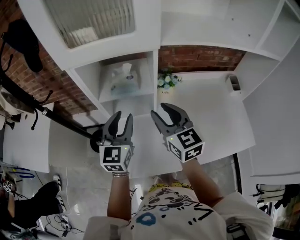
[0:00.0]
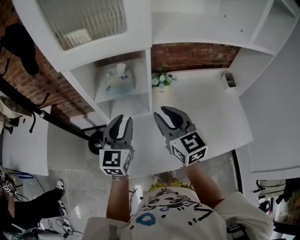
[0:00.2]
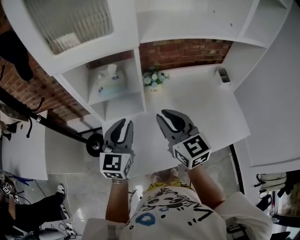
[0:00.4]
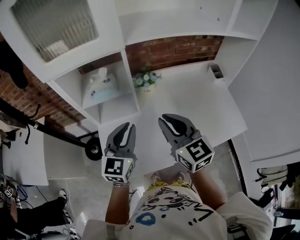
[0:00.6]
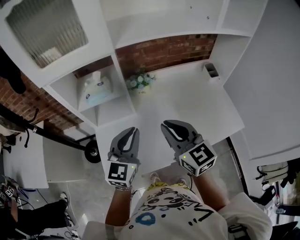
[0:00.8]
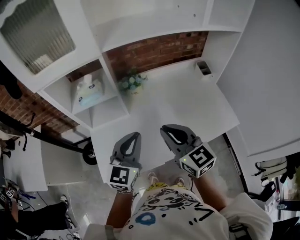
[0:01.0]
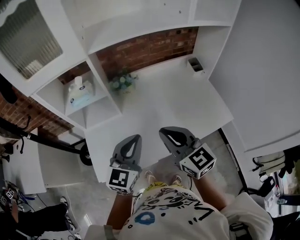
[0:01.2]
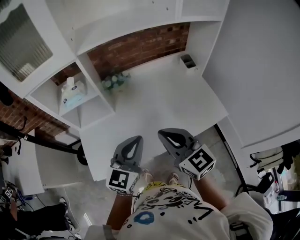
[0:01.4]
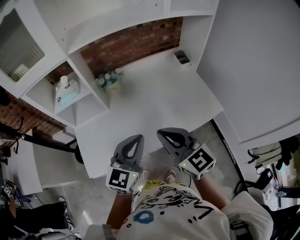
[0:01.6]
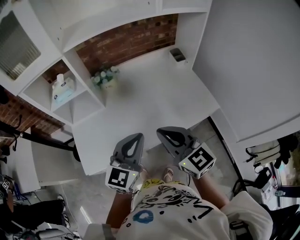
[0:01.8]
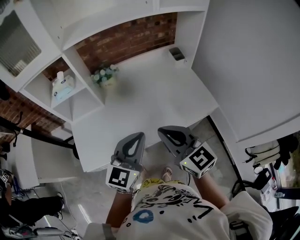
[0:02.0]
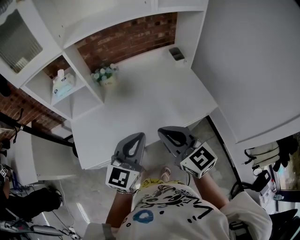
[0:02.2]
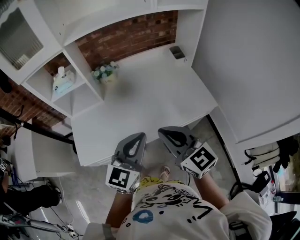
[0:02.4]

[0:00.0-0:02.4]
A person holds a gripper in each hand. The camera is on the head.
0:00.0 to 0:01.2: The grippers both shift to the right and backward by some 25 cm. The right gripper closes, while the left gripper turns by approximately 30 degrees, and closes its fingers.
0:01.2 to 0:02.4: Both grippers travel together to the right and backward, roughly 15 cm.

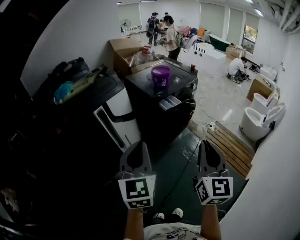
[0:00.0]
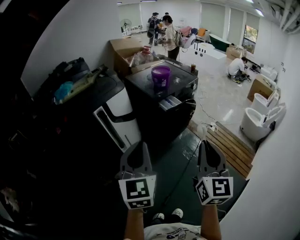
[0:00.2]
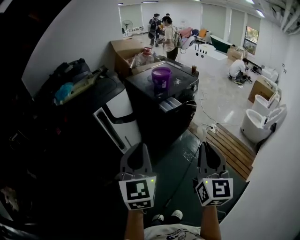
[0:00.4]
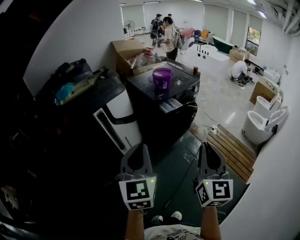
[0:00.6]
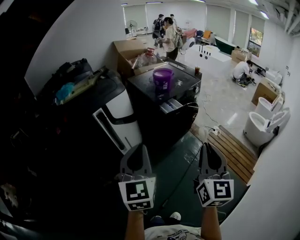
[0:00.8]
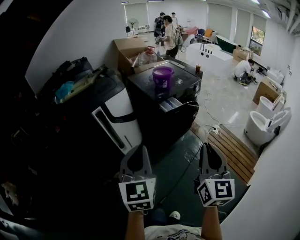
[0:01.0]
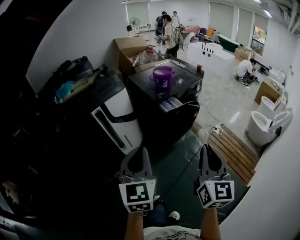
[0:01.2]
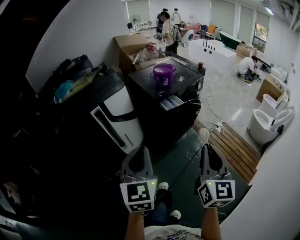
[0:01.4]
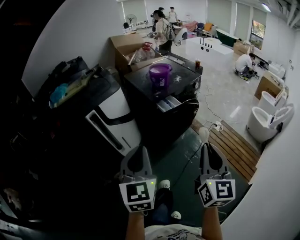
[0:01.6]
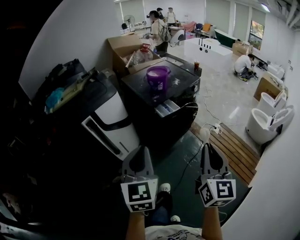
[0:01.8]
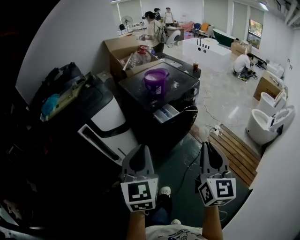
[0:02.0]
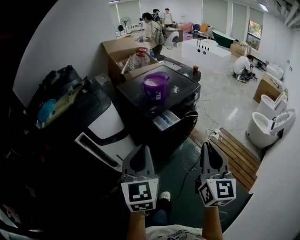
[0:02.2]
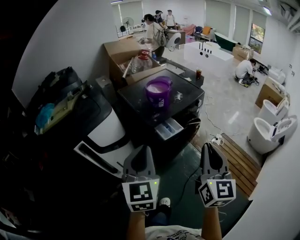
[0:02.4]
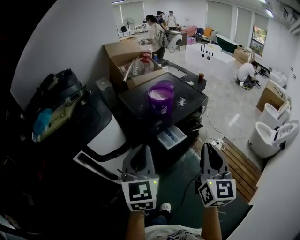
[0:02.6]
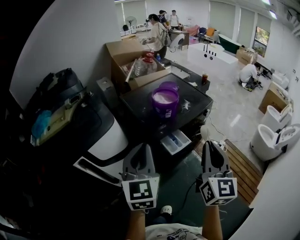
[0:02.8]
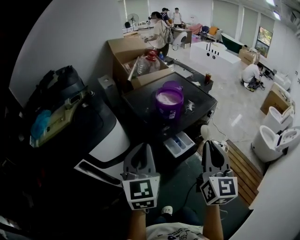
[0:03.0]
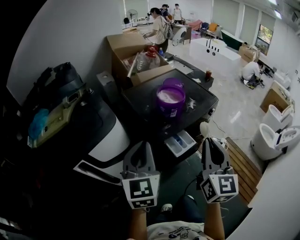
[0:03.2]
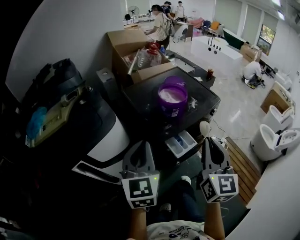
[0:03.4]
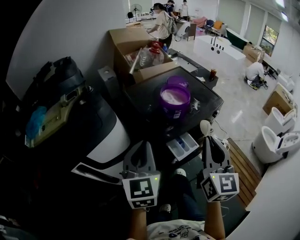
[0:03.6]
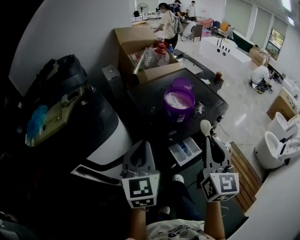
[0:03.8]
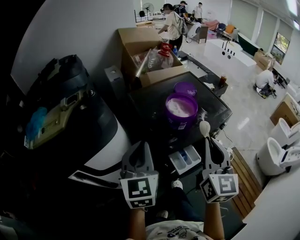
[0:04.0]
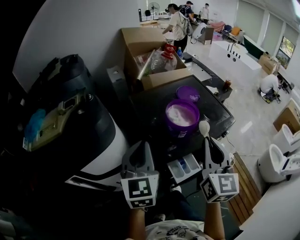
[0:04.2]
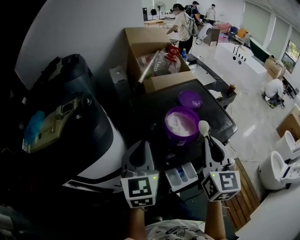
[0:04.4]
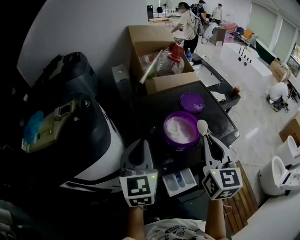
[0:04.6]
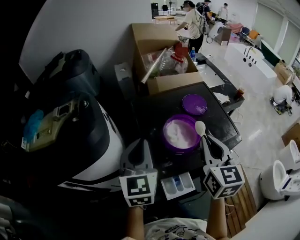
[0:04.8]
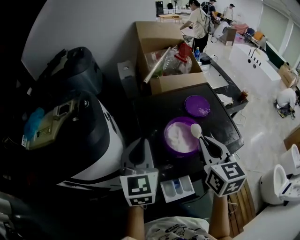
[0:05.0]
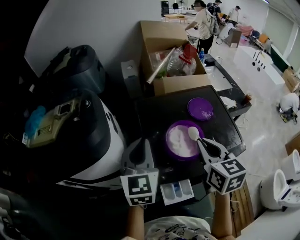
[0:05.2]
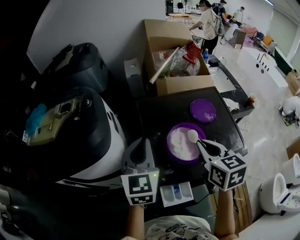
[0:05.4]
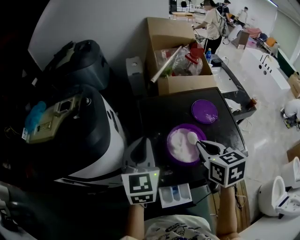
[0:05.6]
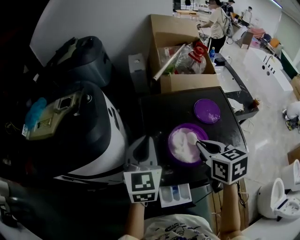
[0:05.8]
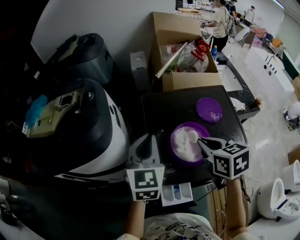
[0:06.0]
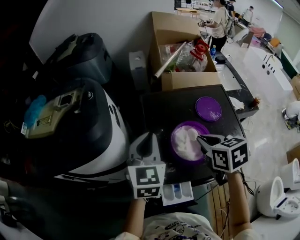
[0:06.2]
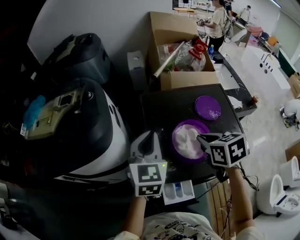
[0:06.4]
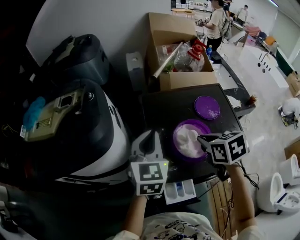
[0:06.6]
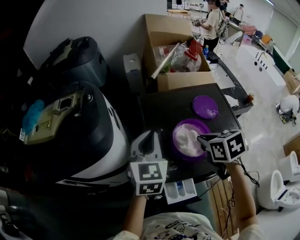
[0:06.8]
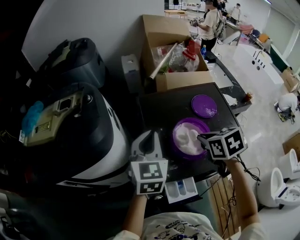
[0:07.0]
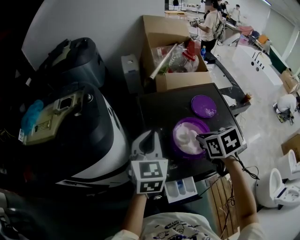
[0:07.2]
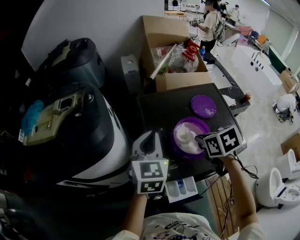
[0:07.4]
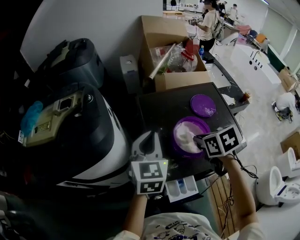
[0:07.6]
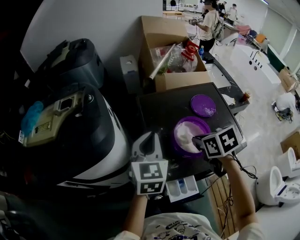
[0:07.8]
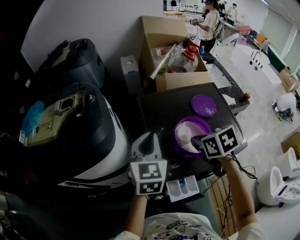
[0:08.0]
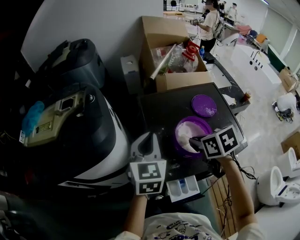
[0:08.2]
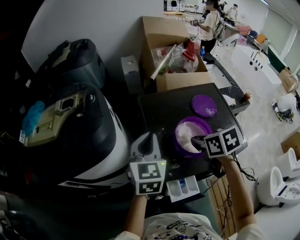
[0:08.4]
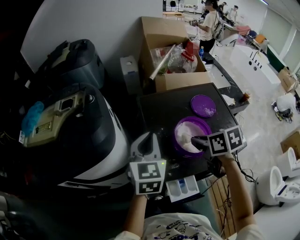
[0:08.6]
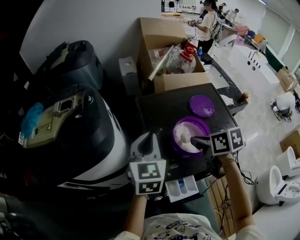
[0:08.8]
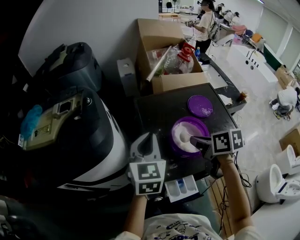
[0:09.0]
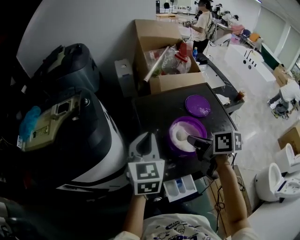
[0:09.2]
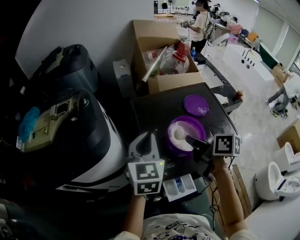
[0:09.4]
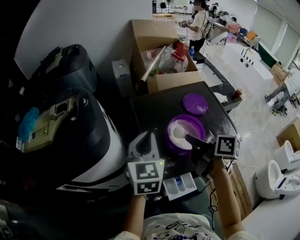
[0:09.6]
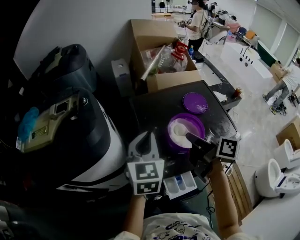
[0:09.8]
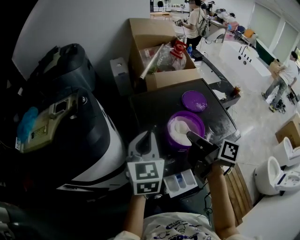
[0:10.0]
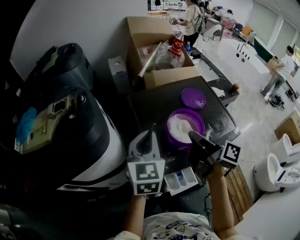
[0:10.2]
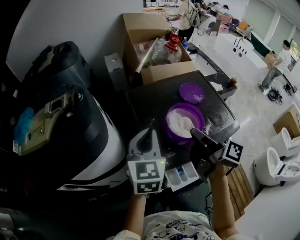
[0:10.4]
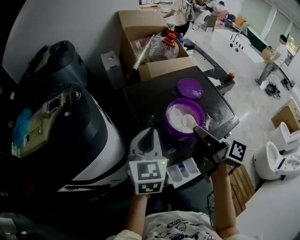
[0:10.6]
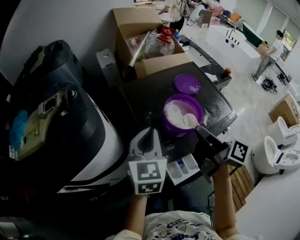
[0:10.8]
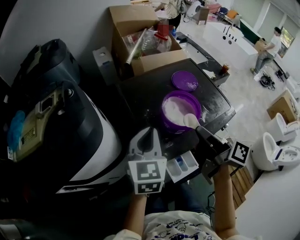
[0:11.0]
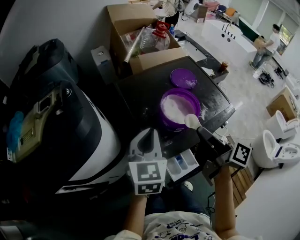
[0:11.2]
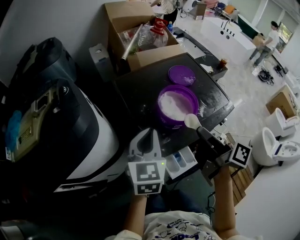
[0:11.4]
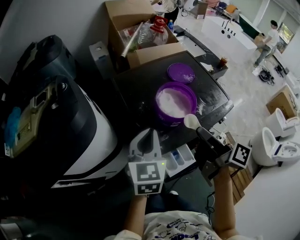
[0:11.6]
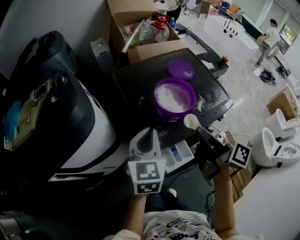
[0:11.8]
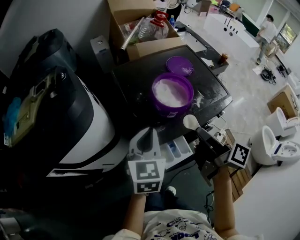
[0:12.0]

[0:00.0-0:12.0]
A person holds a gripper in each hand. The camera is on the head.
0:00.0 to 0:01.6: The two grippers go approximately 10 cm to the right and forward.
0:01.6 to 0:03.0: The grippers both shift forward by about 35 cm.
0:03.0 to 0:04.4: The two grippers go some 20 cm forward.
0:04.4 to 0:06.0: The left gripper shifts by about 10 cm. Meanwhile the right gripper moves about 20 cm, and points its fingers some 40 degrees further downward.
0:06.0 to 0:07.6: The grippers stay close to where they were, moving slightly.
0:07.6 to 0:09.0: The right gripper changes its angle by about 30 degrees.
0:09.0 to 0:10.4: The right gripper changes place by some 5 cm, and points its fingers approximately 40 degrees further upward.
0:10.4 to 0:12.0: The right gripper shifts some 10 cm backward. Meanwhile the left gripper travels backward and downward by some 10 cm.

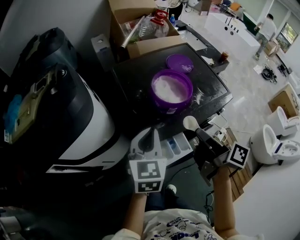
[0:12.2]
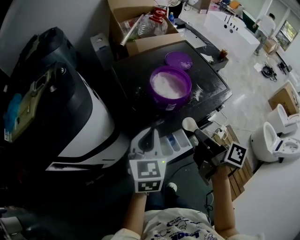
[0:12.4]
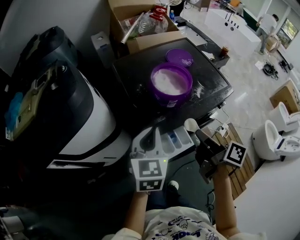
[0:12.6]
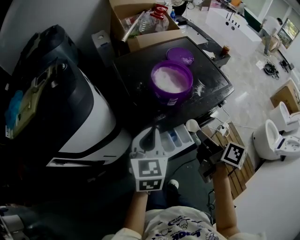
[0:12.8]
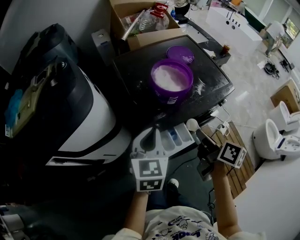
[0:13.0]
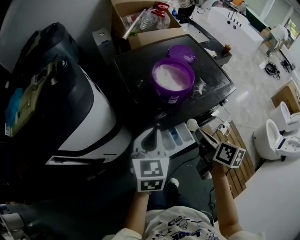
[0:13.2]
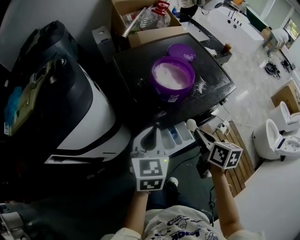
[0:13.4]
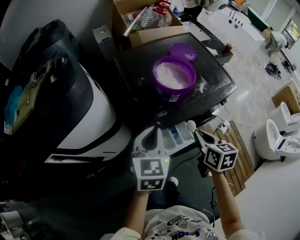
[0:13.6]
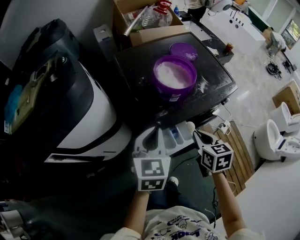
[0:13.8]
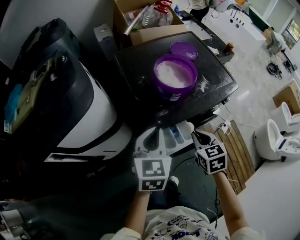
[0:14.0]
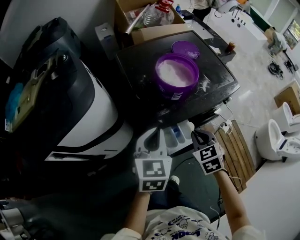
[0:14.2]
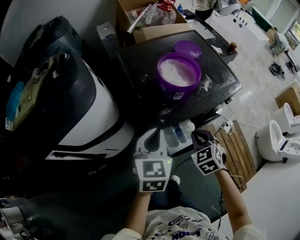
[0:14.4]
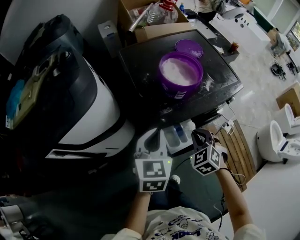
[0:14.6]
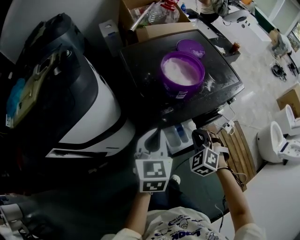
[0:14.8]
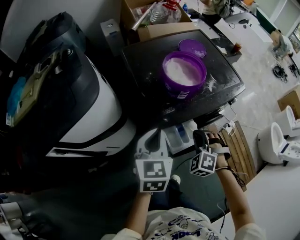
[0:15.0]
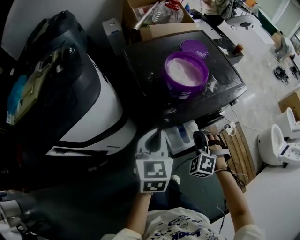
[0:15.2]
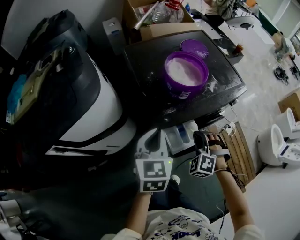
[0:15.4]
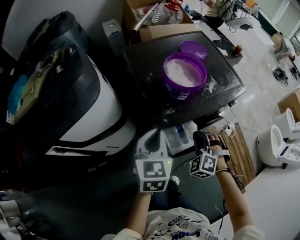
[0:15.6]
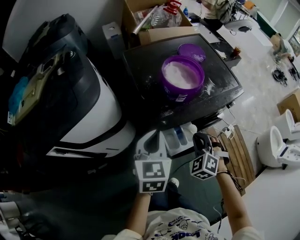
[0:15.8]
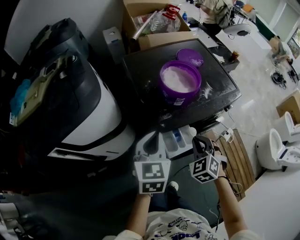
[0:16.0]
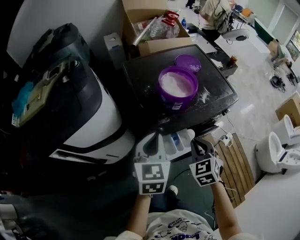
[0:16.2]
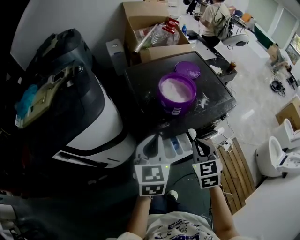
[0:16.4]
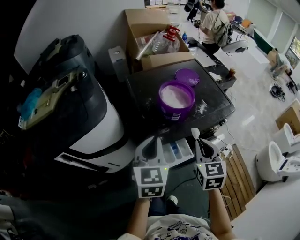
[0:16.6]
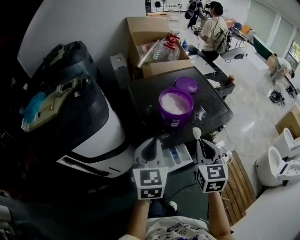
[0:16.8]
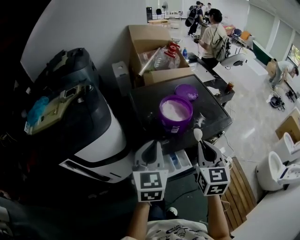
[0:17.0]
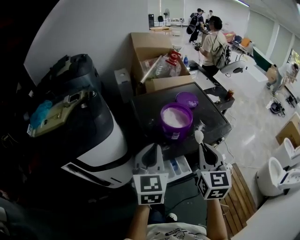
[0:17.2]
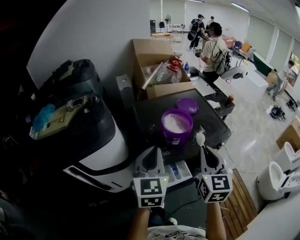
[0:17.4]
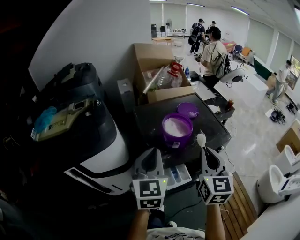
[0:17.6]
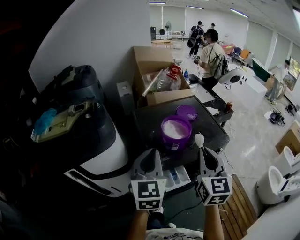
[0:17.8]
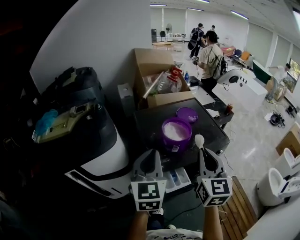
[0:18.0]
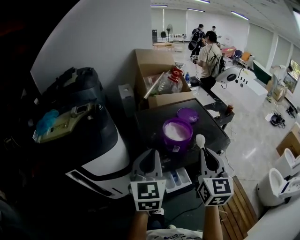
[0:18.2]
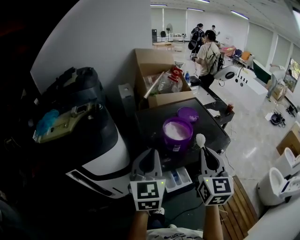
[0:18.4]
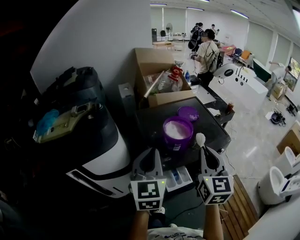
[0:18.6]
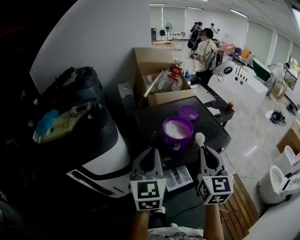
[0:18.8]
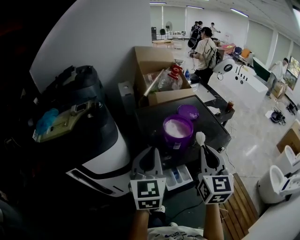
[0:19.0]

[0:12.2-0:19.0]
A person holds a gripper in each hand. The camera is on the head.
0:12.2 to 0:13.6: The right gripper travels downward by some 10 cm, and twists roughly 50 degrees counterclockwise, seen from behind.
0:13.6 to 0:15.0: The right gripper shifts approximately 5 cm downward, and twists approximately 80 degrees counterclockwise, seen from behind.
0:15.0 to 0:16.2: The right gripper goes approximately 5 cm upward, and changes its angle by some 40 degrees.
0:16.2 to 0:17.6: The right gripper is displaced upward by some 25 cm, and tilts its fingers about 30 degrees upward; the left gripper shifts roughly 15 cm upward.
0:17.6 to 0:19.0: The grippers move only a little.

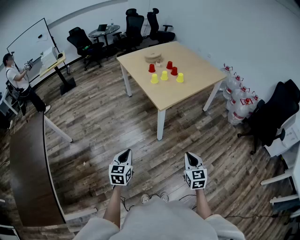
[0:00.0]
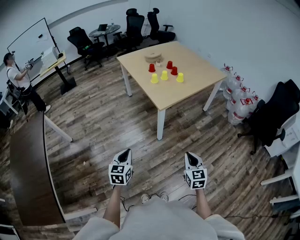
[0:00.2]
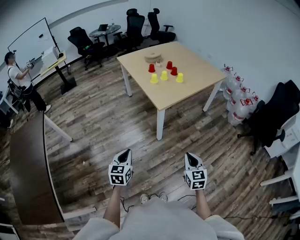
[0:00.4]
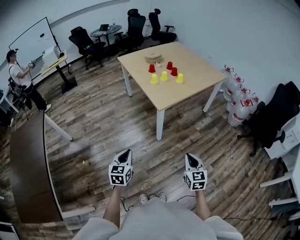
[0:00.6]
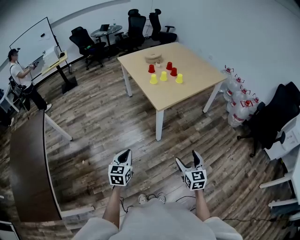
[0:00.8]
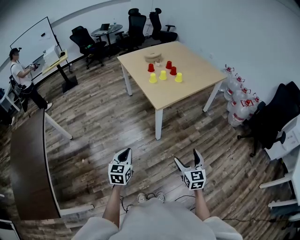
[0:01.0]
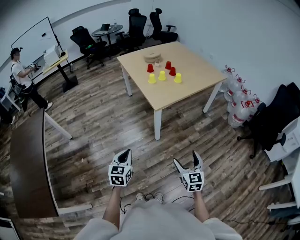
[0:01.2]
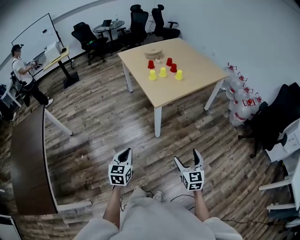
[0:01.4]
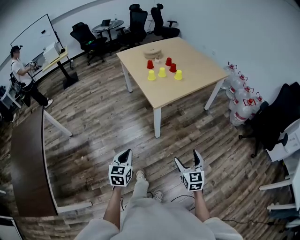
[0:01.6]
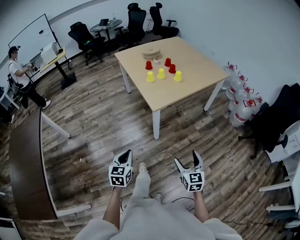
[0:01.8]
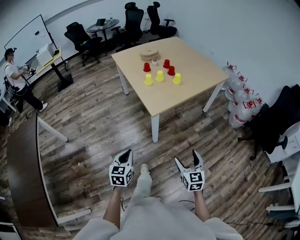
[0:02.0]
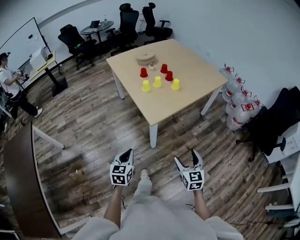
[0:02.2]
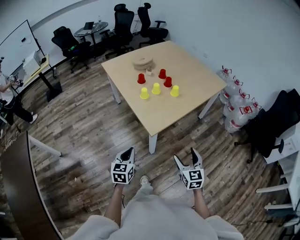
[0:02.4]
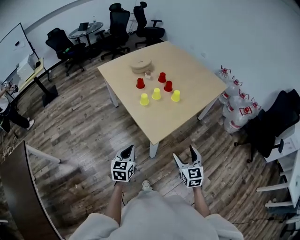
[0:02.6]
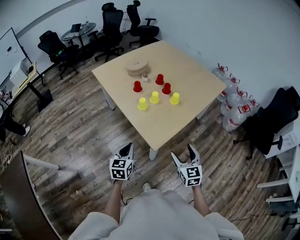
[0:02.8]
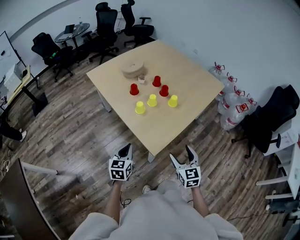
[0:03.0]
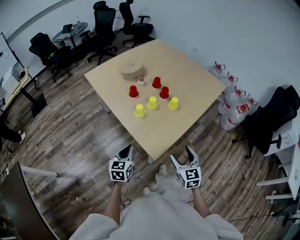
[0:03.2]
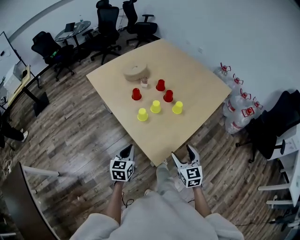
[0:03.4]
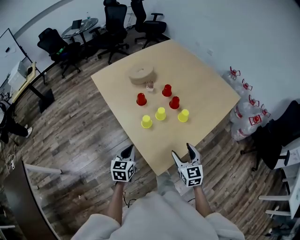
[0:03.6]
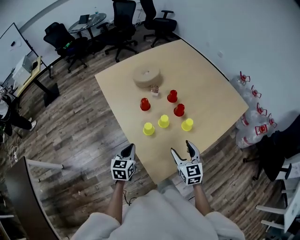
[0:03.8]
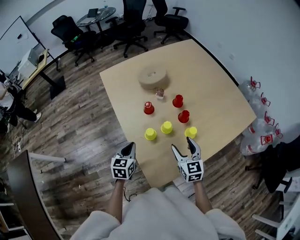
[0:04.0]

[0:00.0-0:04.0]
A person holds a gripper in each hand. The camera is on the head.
0:00.0 to 0:01.4: The right gripper opens up. Meanwhile the left gripper moves to the right, about 5 cm.
0:01.4 to 0:02.6: Both grippers travel together forward, approximately 30 cm.
0:02.6 to 0:04.0: Both grippers move forward, some 35 cm.
